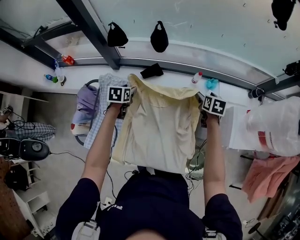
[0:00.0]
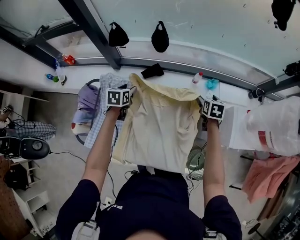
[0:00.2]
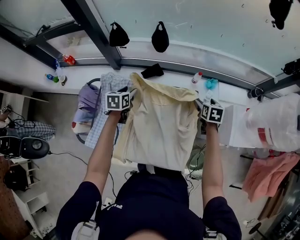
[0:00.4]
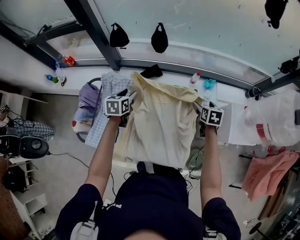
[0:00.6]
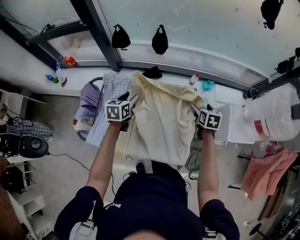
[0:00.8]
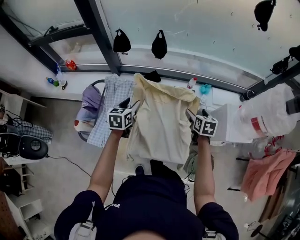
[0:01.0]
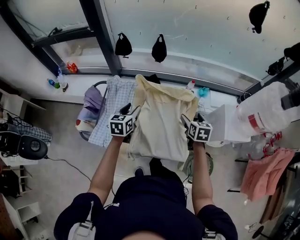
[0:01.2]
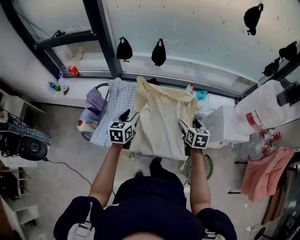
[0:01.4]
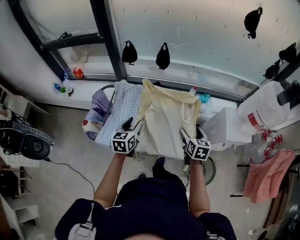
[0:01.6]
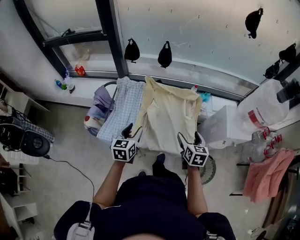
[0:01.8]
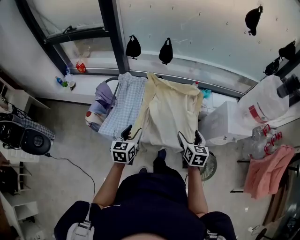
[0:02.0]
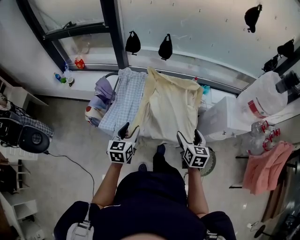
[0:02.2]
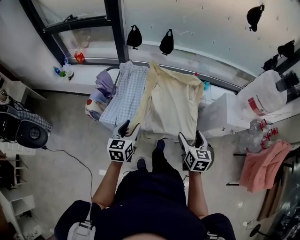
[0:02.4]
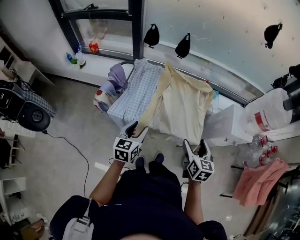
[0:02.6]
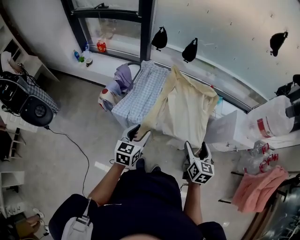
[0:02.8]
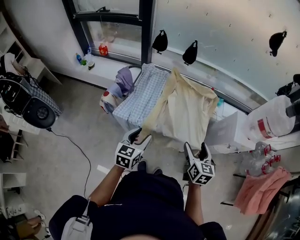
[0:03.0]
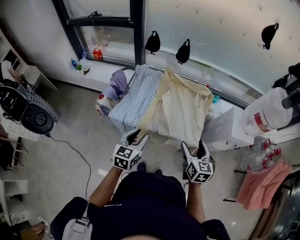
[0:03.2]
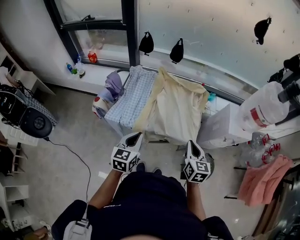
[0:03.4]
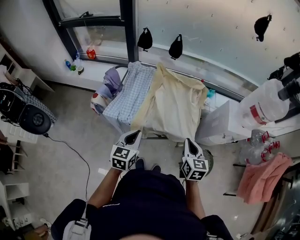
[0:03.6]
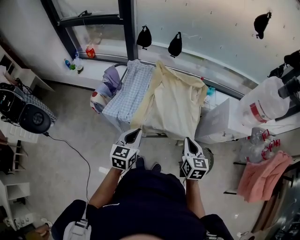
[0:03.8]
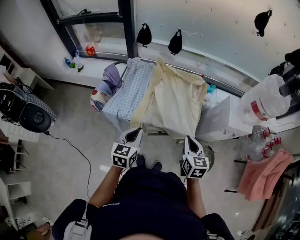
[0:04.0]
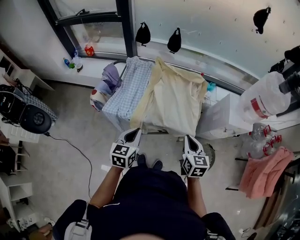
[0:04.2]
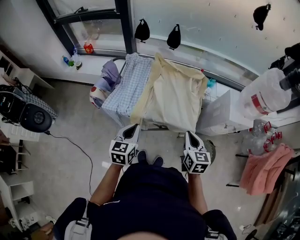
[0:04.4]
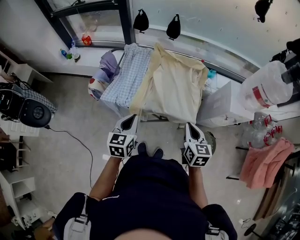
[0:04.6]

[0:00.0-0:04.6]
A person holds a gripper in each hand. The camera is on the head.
0:00.0 to 0:01.6: The right gripper moves backward, roughly 30 cm. Meanwhile the left gripper is displaced backward and upward by about 30 cm, and turns by approximately 30 degrees.
0:01.6 to 0:03.0: Both grippers move backward, about 20 cm.
0:03.0 to 0:04.6: The right gripper closes; the left gripper closes up.

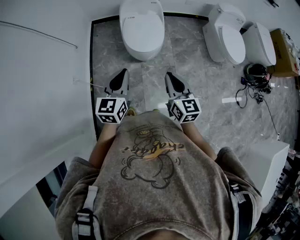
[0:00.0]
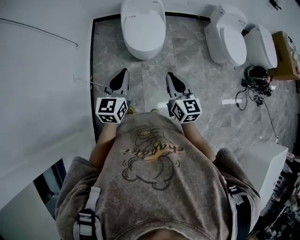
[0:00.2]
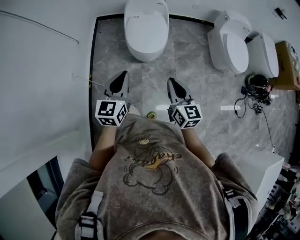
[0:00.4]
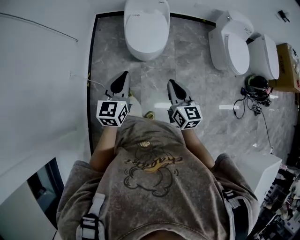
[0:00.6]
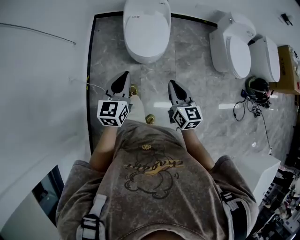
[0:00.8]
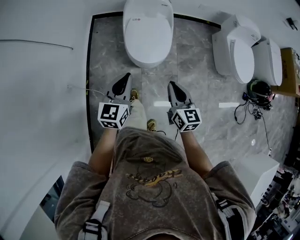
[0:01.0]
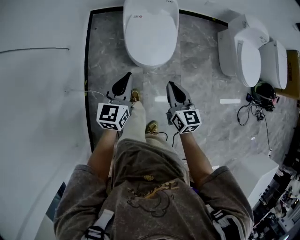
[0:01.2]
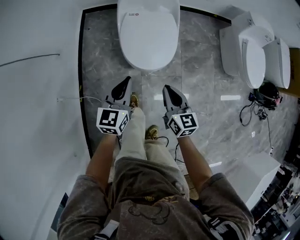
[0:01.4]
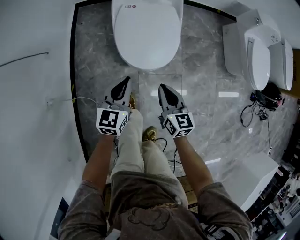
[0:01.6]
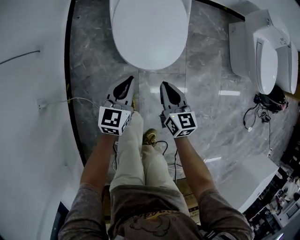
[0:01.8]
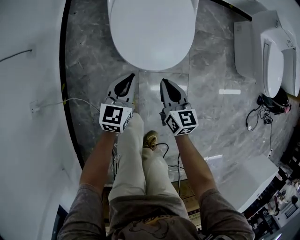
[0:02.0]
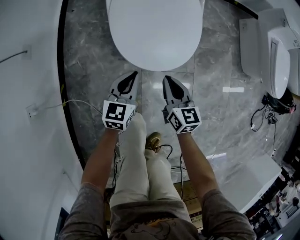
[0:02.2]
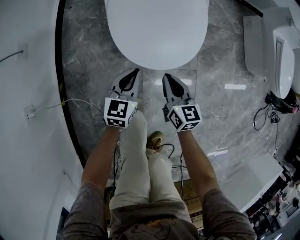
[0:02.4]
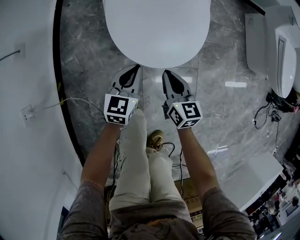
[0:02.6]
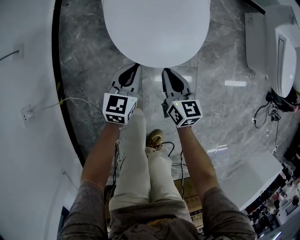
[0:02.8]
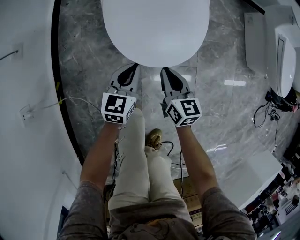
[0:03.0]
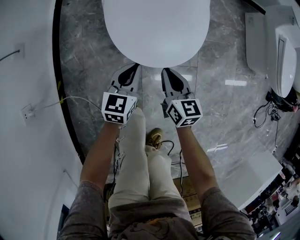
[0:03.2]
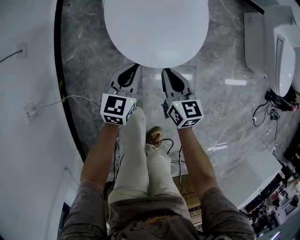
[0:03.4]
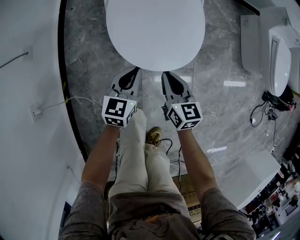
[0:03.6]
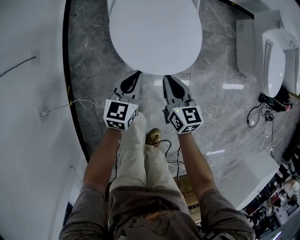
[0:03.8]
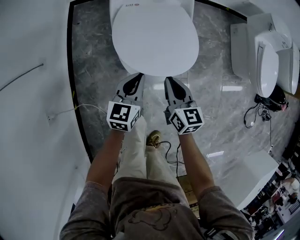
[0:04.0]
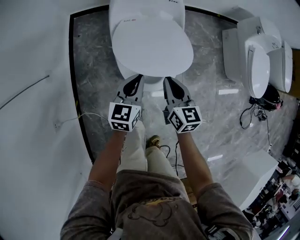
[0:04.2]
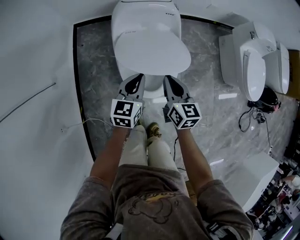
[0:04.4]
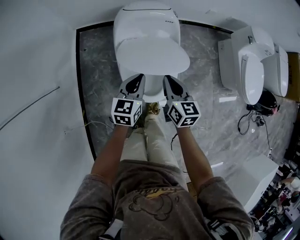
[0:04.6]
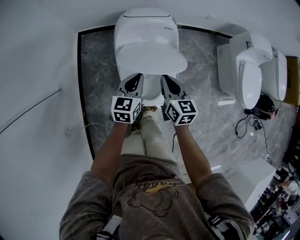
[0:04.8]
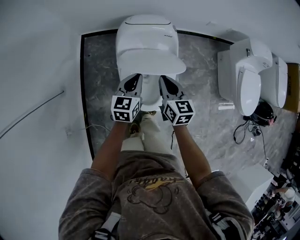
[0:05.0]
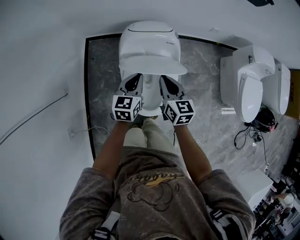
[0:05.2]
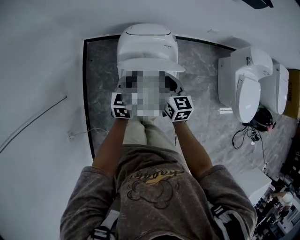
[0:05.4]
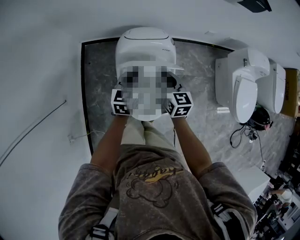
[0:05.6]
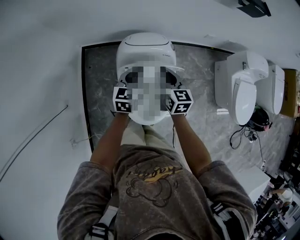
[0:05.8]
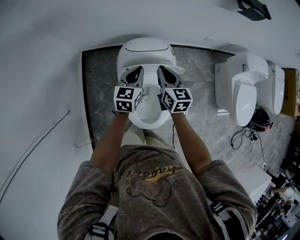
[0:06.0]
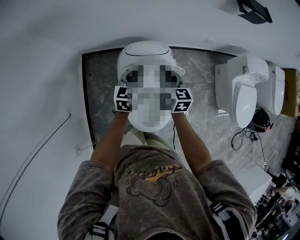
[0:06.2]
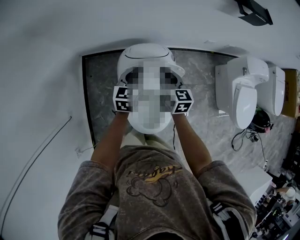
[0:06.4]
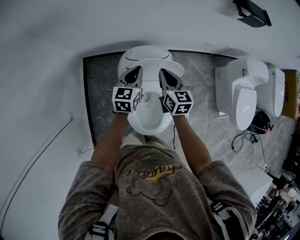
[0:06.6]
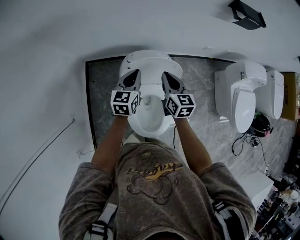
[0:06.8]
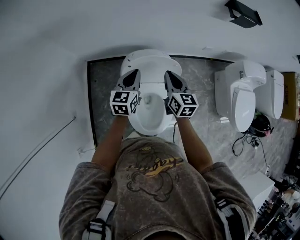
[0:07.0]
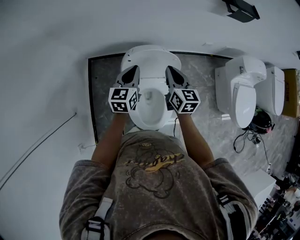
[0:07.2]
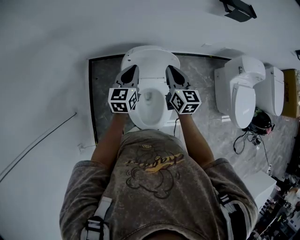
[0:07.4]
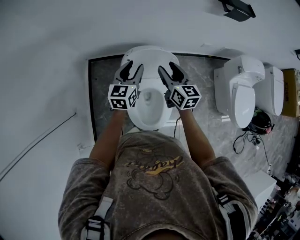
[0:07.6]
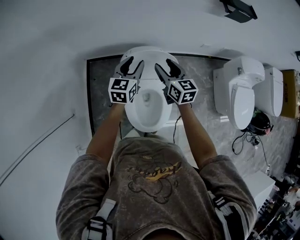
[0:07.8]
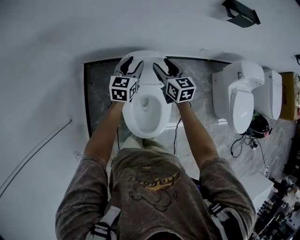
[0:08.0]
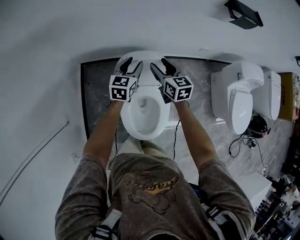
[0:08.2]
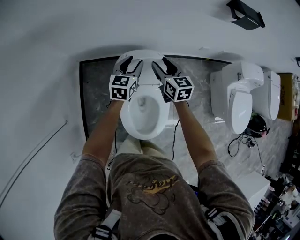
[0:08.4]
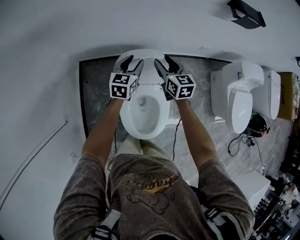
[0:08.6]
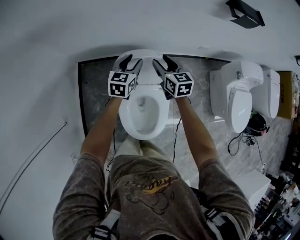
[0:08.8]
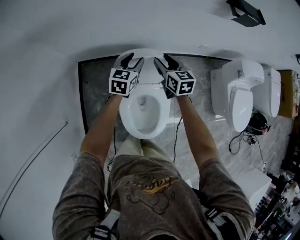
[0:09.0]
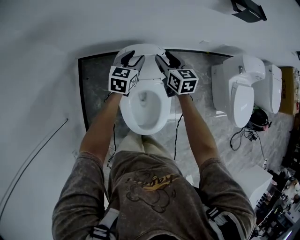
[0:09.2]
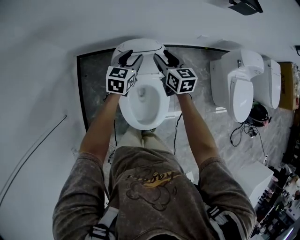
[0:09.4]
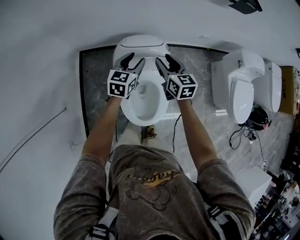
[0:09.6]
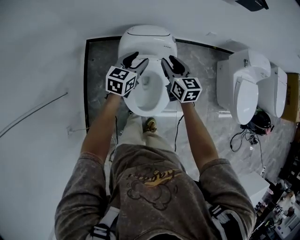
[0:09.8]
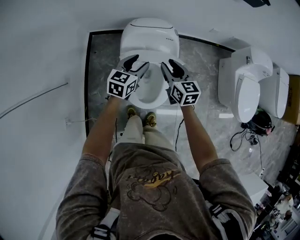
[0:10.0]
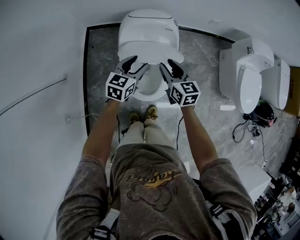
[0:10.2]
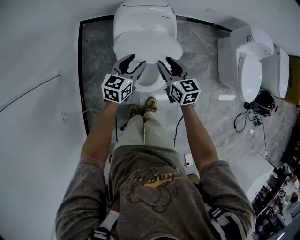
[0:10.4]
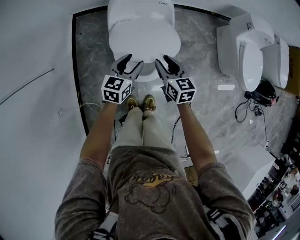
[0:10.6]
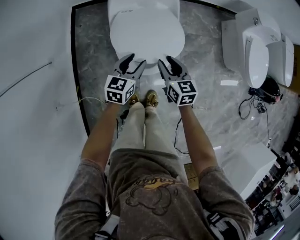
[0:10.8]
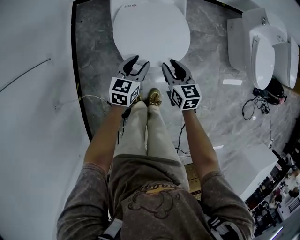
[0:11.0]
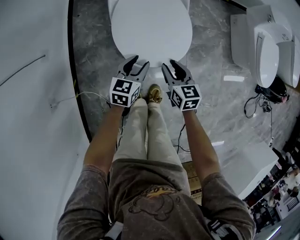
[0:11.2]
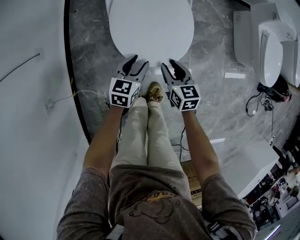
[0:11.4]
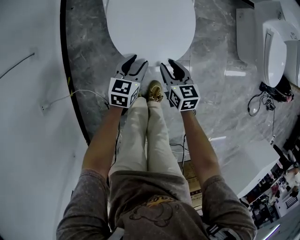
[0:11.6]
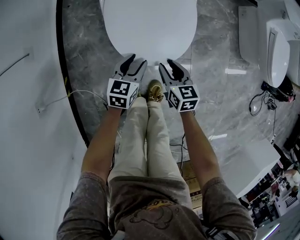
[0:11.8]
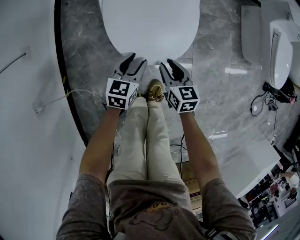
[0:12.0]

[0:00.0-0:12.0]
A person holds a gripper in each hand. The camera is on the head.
0:00.0 to 0:01.6: Both grippers travel together downward and forward, approximately 40 cm.
0:01.6 to 0:03.0: Both grippers move downward, roughly 25 cm.
0:03.0 to 0:04.4: The two grippers go about 35 cm upward and forward.
0:04.4 to 0:06.0: Both grippers travel together forward, roughly 25 cm.
0:06.0 to 0:07.6: The grippers both shift upward by approximately 10 cm. The right gripper opens its fingers; the left gripper opens.
0:07.6 to 0:09.0: Both grippers travel together forward and downward, approximately 15 cm.
0:09.0 to 0:10.4: Both grippers travel together backward, approximately 30 cm.
0:10.4 to 0:12.0: Both grippers travel together downward and backward, about 35 cm.

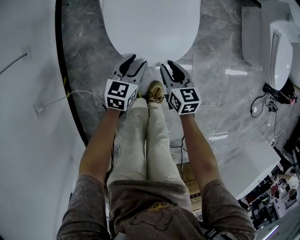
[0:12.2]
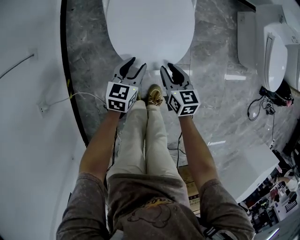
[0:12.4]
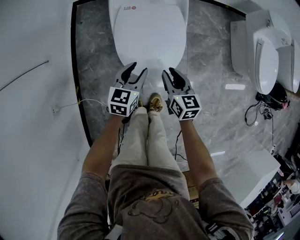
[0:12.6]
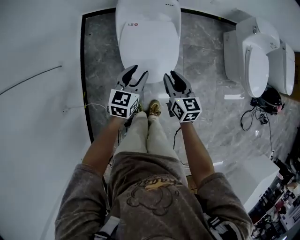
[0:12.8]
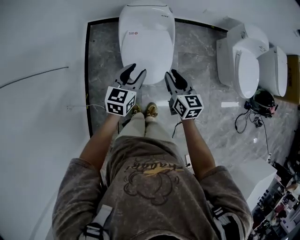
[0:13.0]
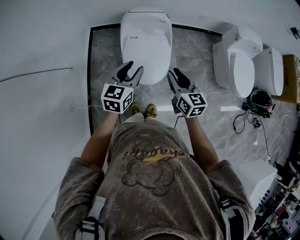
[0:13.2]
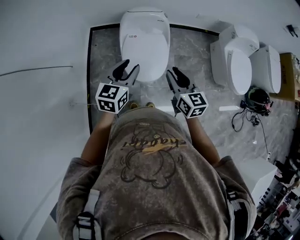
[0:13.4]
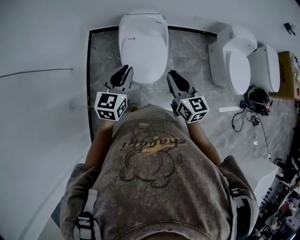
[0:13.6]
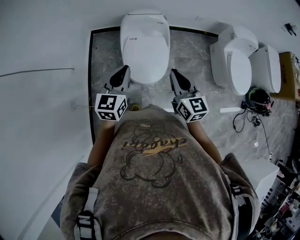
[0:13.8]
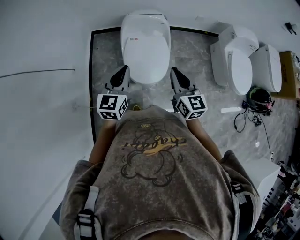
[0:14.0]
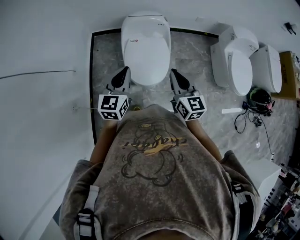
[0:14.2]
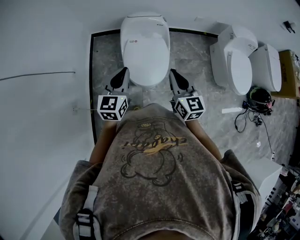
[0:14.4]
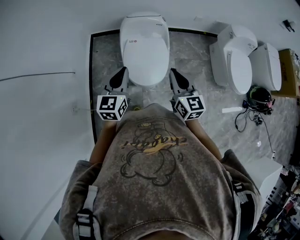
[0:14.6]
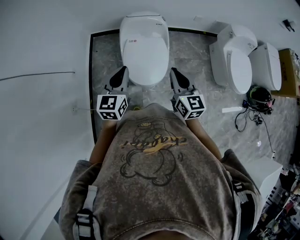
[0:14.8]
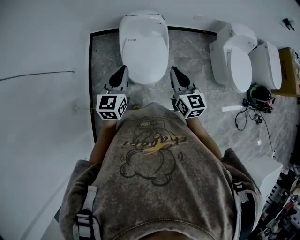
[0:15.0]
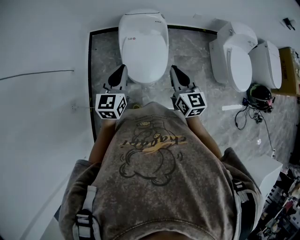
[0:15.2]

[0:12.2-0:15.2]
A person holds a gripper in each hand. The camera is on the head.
0:12.2 to 0:13.8: Both grippers travel together upward, roughly 50 cm. The right gripper rotates approximately 30 degrees, and closes. Meanwhile the left gripper rotates roughly 30 degrees, and closes.
0:13.8 to 0:15.2: The grippers move only a little.

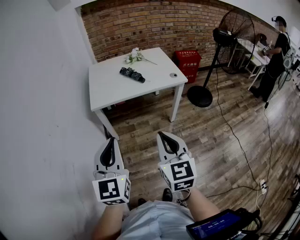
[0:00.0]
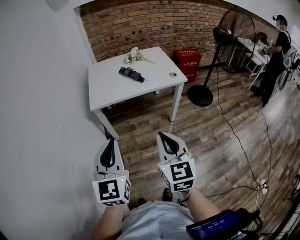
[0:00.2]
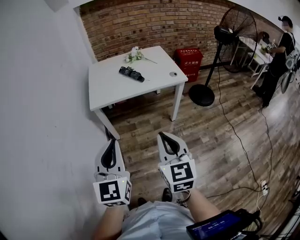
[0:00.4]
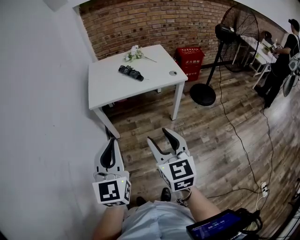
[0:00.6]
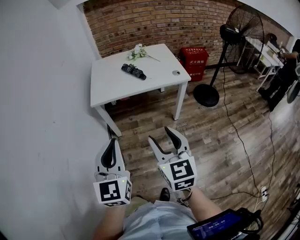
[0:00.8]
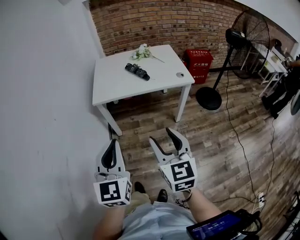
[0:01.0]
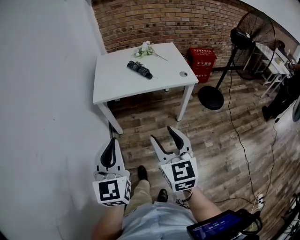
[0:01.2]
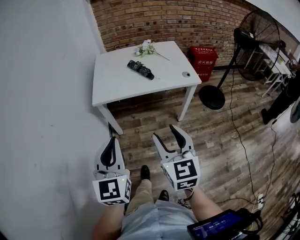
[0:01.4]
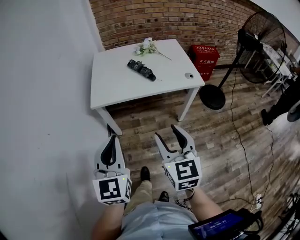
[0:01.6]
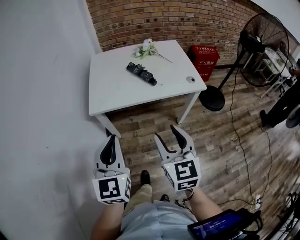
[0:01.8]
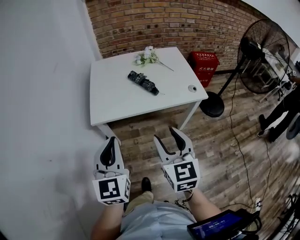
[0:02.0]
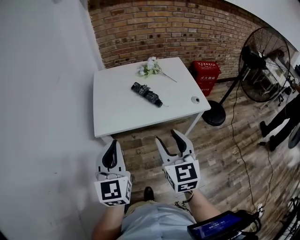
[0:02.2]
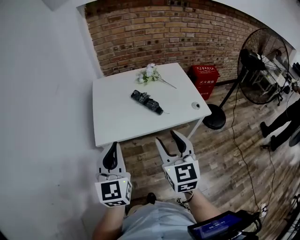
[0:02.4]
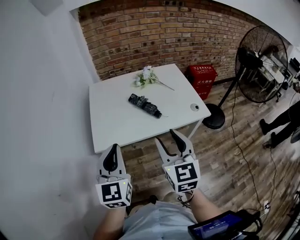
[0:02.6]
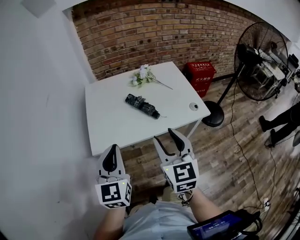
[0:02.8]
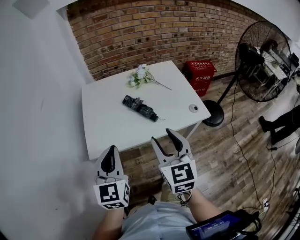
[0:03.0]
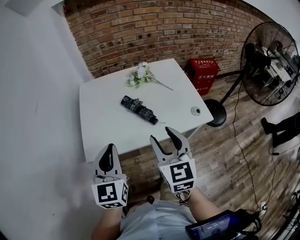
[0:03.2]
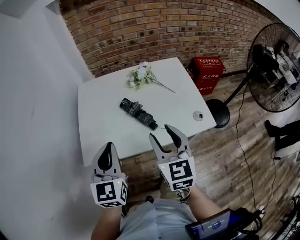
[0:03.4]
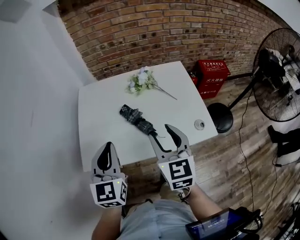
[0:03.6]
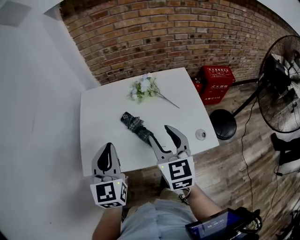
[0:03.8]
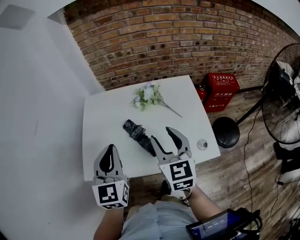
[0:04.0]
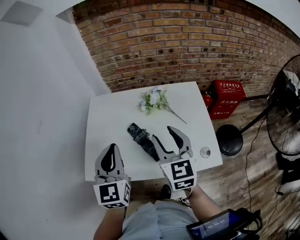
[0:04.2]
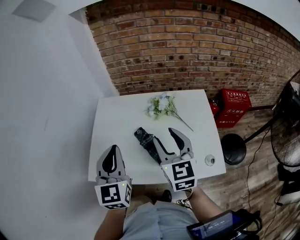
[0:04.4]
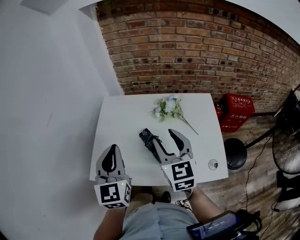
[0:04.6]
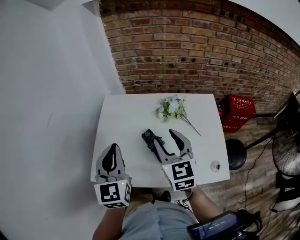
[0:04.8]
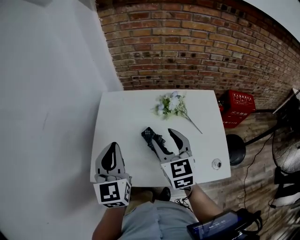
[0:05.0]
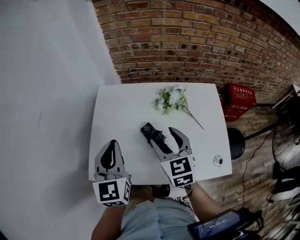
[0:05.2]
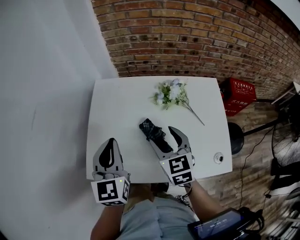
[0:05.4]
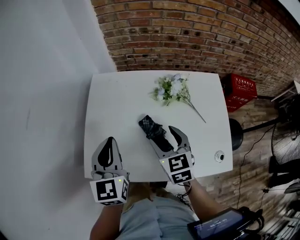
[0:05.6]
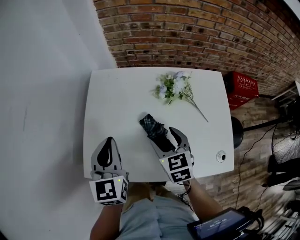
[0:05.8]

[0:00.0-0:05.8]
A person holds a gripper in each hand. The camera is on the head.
0:00.0 to 0:01.4: Both grippers travel together forward, about 5 cm. The right gripper opens.
0:01.4 to 0:02.8: Both grippers move forward, approximately 30 cm.
0:02.8 to 0:04.4: Both grippers travel together forward, roughly 25 cm.
0:04.4 to 0:05.8: The right gripper moves downward and forward, approximately 20 cm, and changes its angle by roughly 30 degrees, while the left gripper heads downward, forward and to the left, covering roughly 15 cm.
